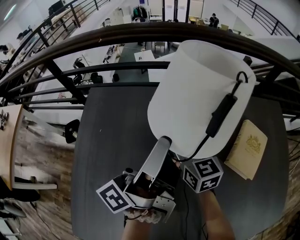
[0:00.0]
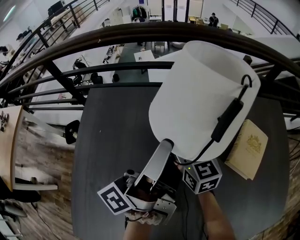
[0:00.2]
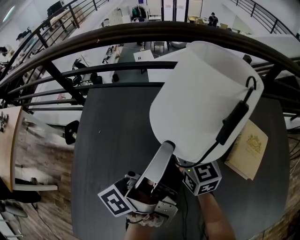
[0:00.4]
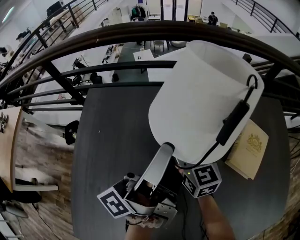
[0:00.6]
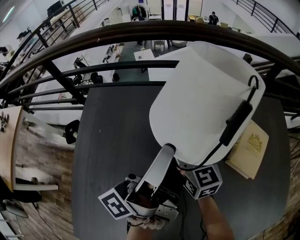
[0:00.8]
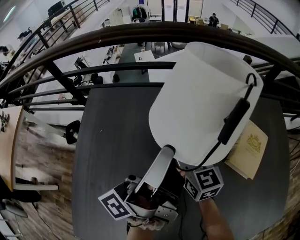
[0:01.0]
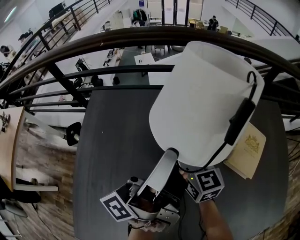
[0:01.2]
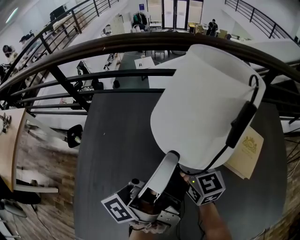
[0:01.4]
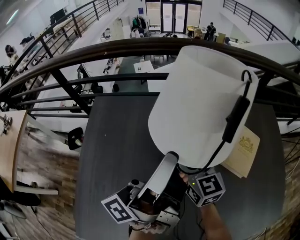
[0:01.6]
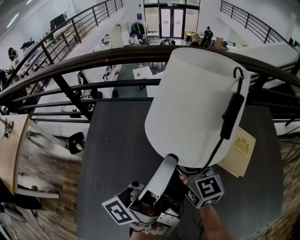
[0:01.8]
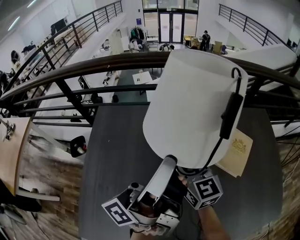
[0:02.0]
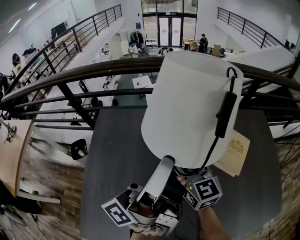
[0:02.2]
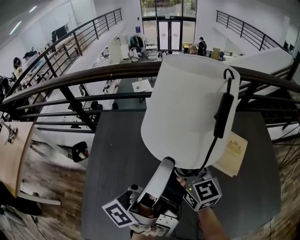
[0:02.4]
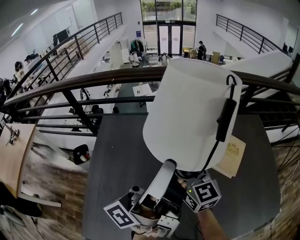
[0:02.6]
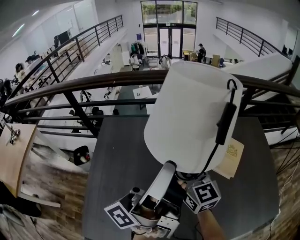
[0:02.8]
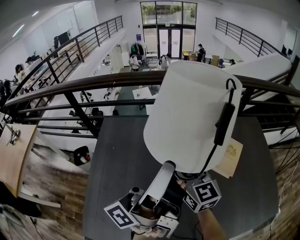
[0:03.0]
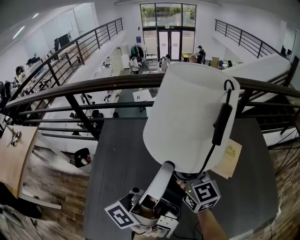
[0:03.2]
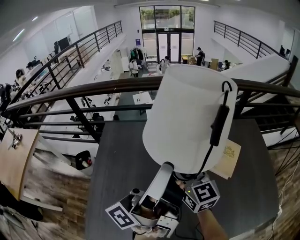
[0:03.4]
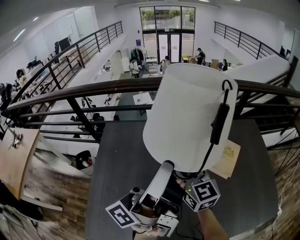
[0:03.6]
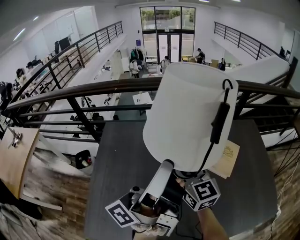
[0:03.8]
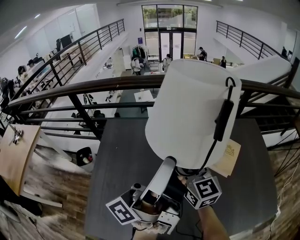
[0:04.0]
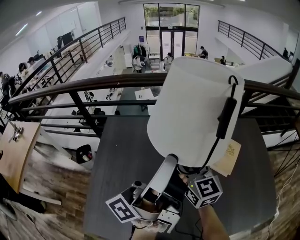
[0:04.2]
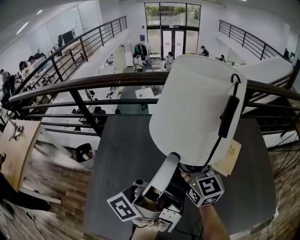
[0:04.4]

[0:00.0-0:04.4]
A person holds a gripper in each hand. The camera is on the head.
0:00.0 to 0:01.4: The left gripper changes place by some 5 cm. The right gripper shifts by approximately 5 cm.
0:01.4 to 0:03.0: The grippers both shift upward and backward by some 15 cm.
0:03.0 to 0:04.4: There are only small adjustments of the grippers.

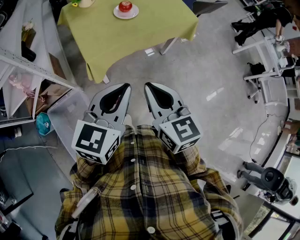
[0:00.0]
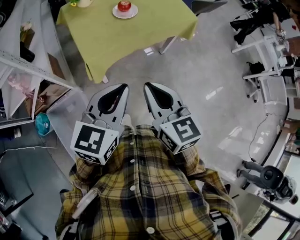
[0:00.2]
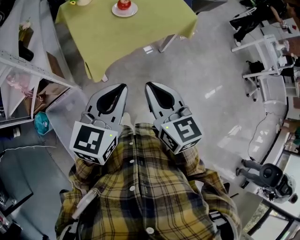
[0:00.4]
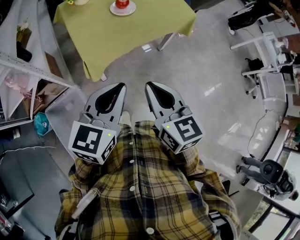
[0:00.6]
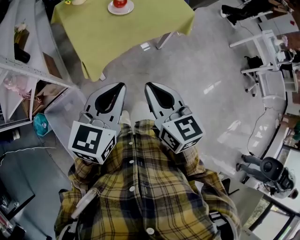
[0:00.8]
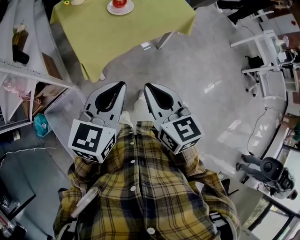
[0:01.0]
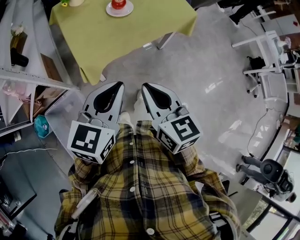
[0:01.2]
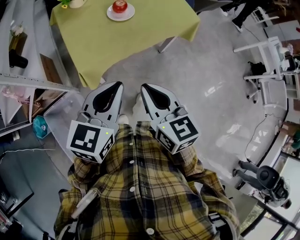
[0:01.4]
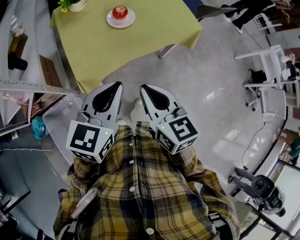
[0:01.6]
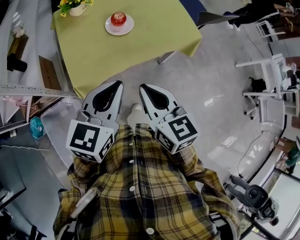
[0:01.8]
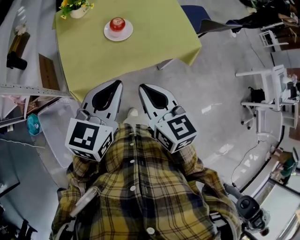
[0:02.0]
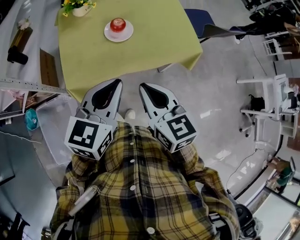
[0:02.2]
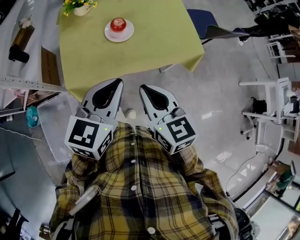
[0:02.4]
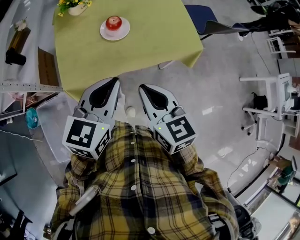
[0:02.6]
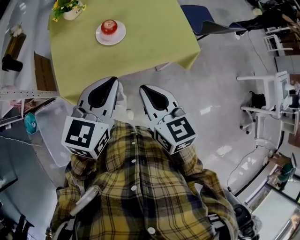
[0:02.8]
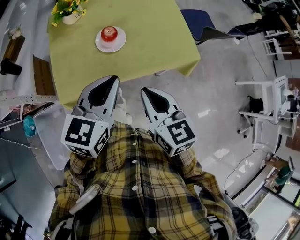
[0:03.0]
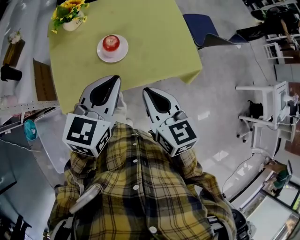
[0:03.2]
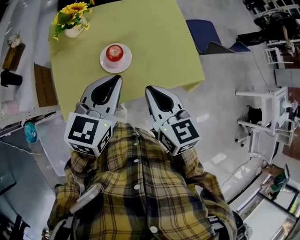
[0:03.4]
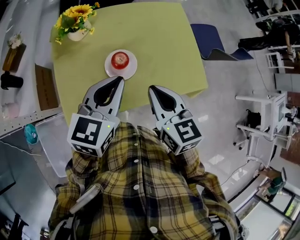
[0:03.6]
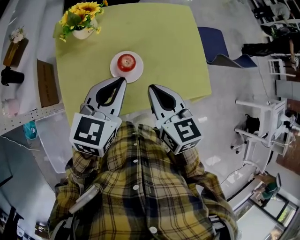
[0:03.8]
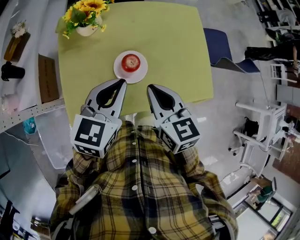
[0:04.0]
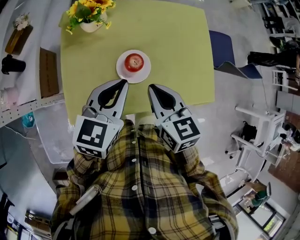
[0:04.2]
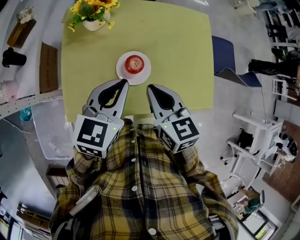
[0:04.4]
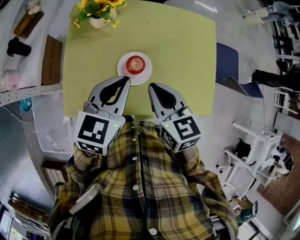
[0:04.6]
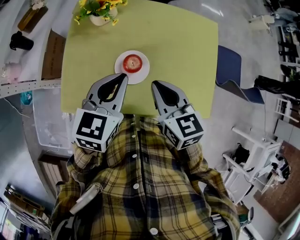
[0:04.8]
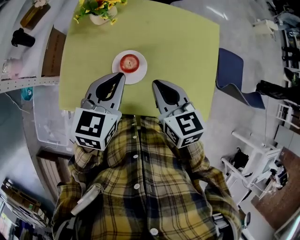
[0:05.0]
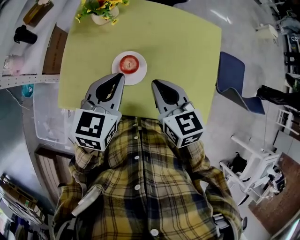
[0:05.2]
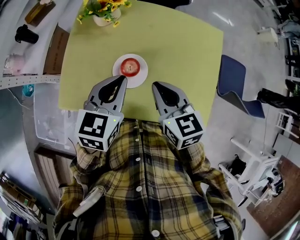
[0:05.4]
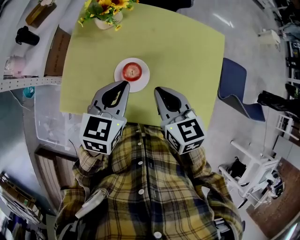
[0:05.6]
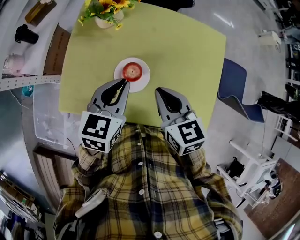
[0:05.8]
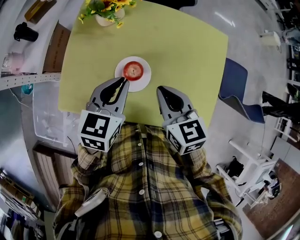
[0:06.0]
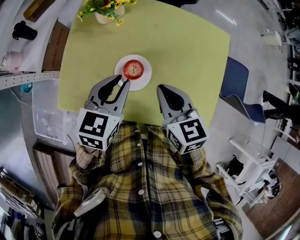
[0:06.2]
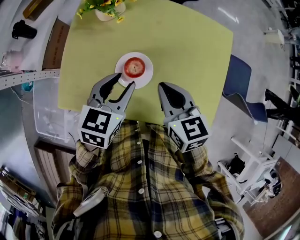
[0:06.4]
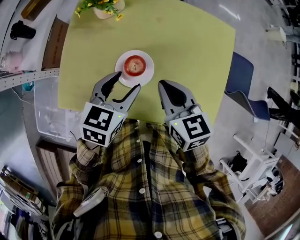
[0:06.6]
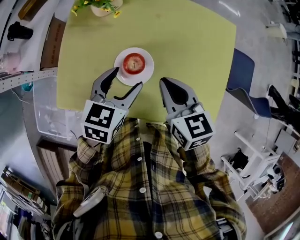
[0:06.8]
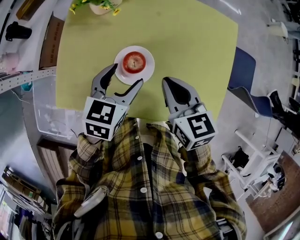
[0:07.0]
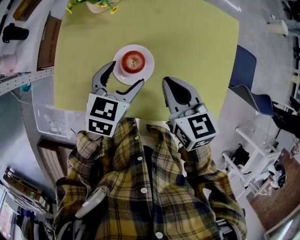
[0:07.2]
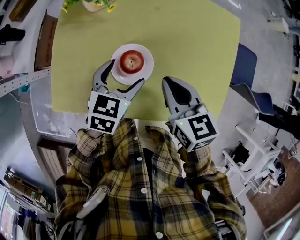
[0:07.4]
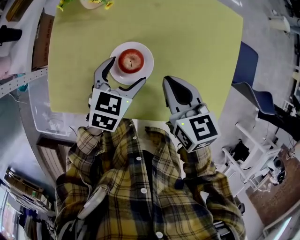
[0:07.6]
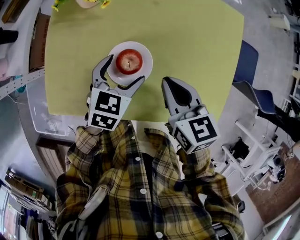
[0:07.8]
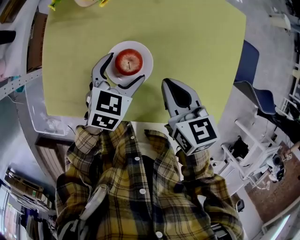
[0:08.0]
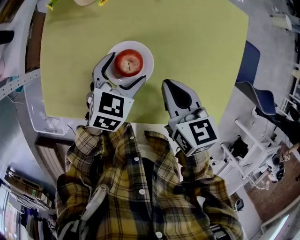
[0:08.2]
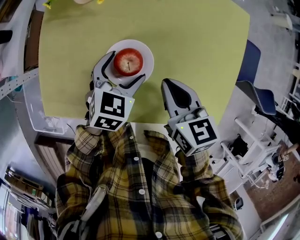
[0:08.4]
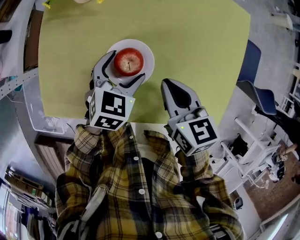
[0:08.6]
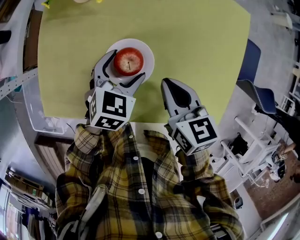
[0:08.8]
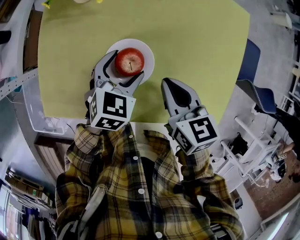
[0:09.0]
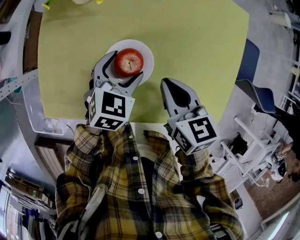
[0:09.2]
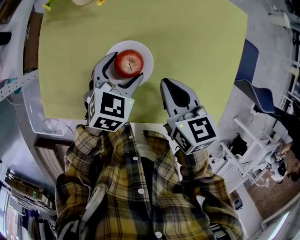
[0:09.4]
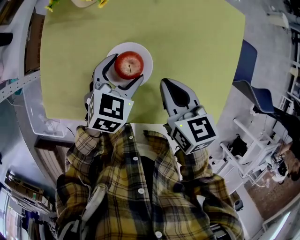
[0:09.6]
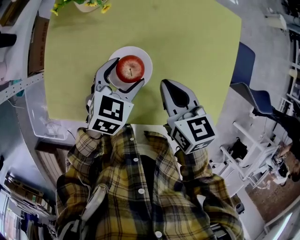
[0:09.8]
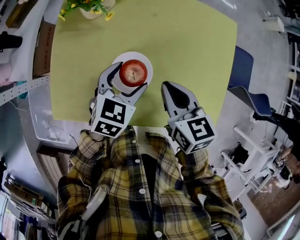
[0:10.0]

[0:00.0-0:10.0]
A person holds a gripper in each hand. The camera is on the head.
0:00.0 to 0:01.4: Both grippers move forward, about 10 cm.
0:01.4 to 0:02.8: Both grippers move forward and to the right, roughly 20 cm.
0:02.8 to 0:04.2: Both grippers travel together forward, approximately 25 cm.
0:04.2 to 0:05.8: The left gripper changes place by about 5 cm, and turns by about 20 degrees, while the right gripper heads to the right, covering roughly 5 cm.
0:05.8 to 0:07.2: The right gripper travels downward by approximately 5 cm, while the left gripper shifts some 10 cm downward, and opens up.
0:07.2 to 0:08.6: The grippers both shift downward by some 5 cm.
0:08.6 to 0:10.0: The left gripper heads upward, covering roughly 5 cm.

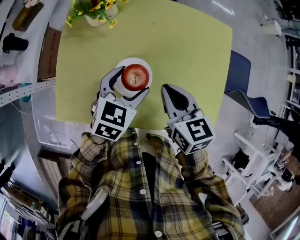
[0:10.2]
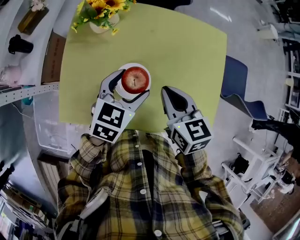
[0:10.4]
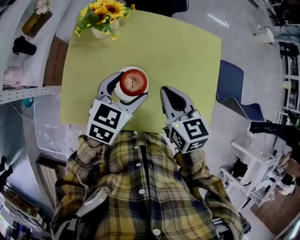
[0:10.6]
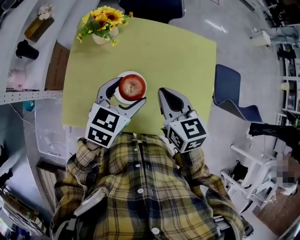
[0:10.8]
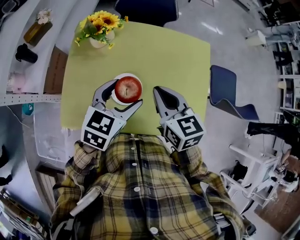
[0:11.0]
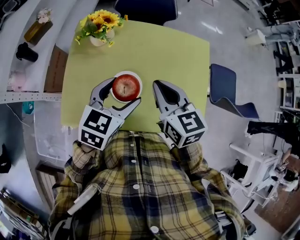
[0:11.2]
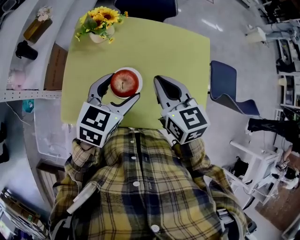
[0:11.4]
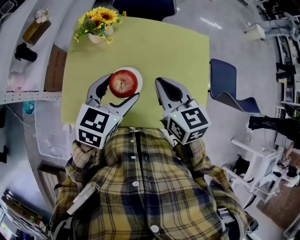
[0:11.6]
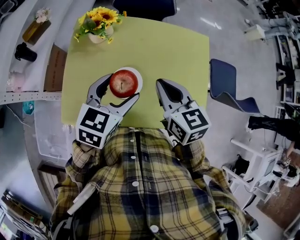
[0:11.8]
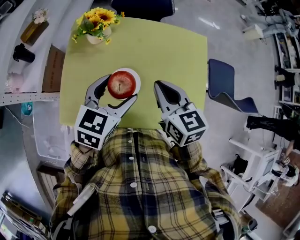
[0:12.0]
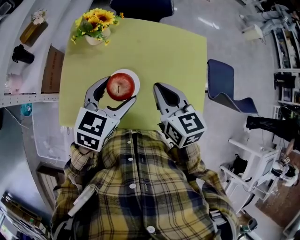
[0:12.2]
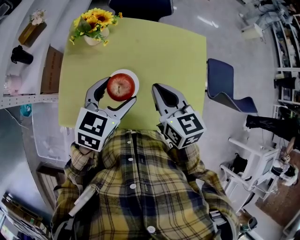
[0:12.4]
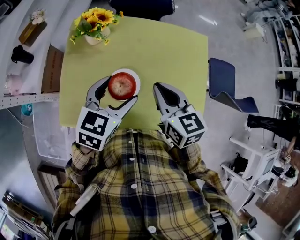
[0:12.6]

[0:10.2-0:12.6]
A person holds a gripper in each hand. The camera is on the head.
0:10.2 to 0:11.4: Both grippers move upward, roughly 10 cm.
0:11.4 to 0:12.6: The grippers make only small movements.

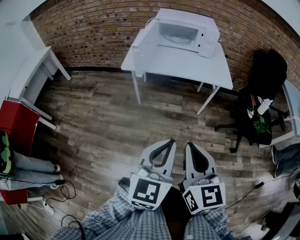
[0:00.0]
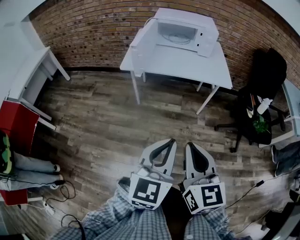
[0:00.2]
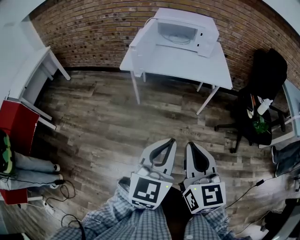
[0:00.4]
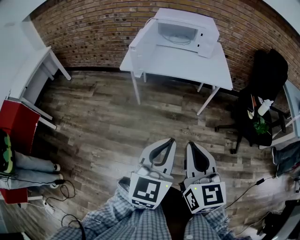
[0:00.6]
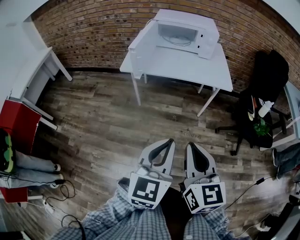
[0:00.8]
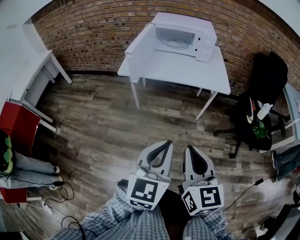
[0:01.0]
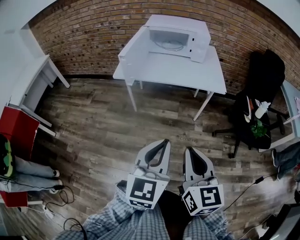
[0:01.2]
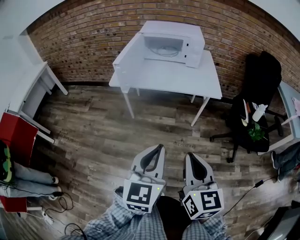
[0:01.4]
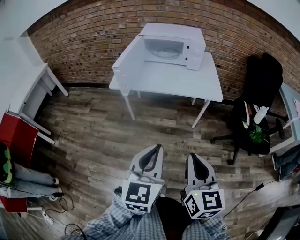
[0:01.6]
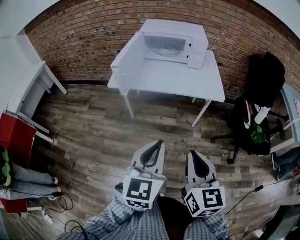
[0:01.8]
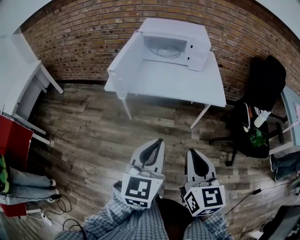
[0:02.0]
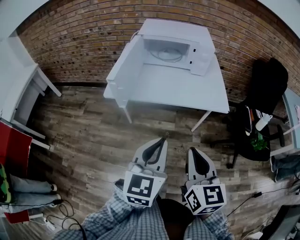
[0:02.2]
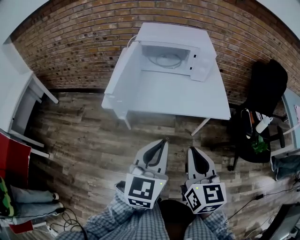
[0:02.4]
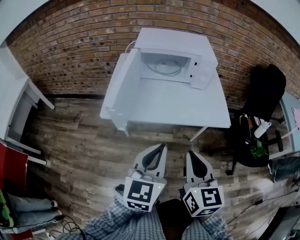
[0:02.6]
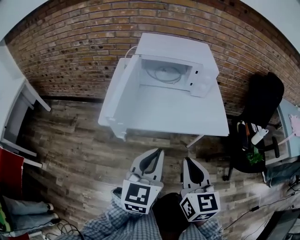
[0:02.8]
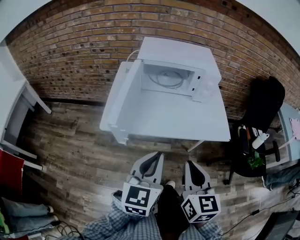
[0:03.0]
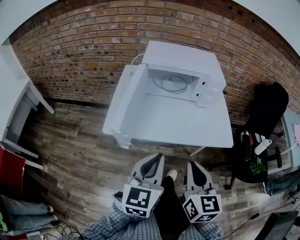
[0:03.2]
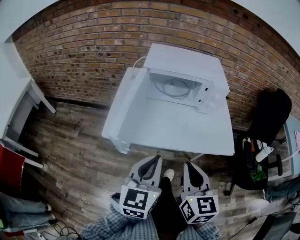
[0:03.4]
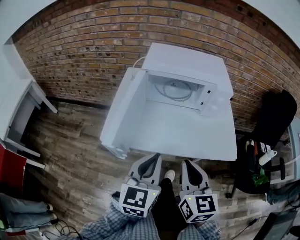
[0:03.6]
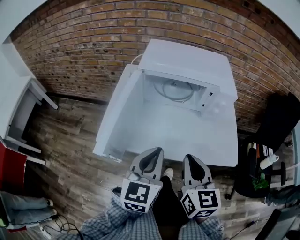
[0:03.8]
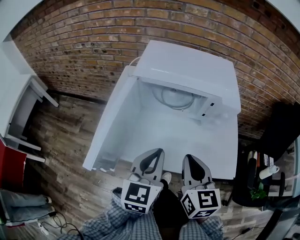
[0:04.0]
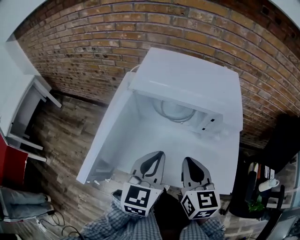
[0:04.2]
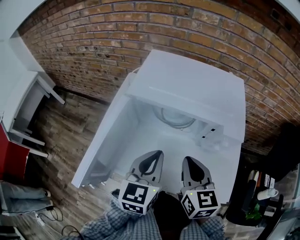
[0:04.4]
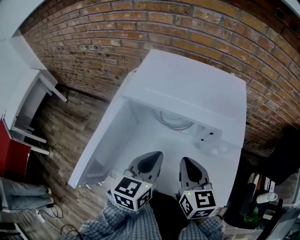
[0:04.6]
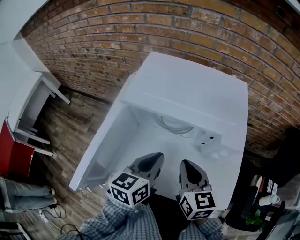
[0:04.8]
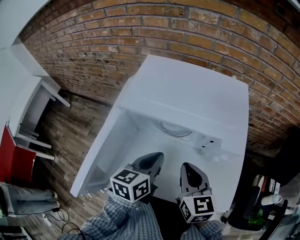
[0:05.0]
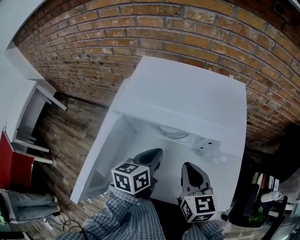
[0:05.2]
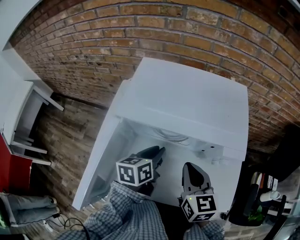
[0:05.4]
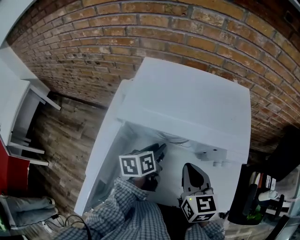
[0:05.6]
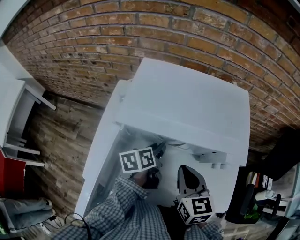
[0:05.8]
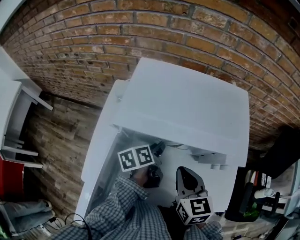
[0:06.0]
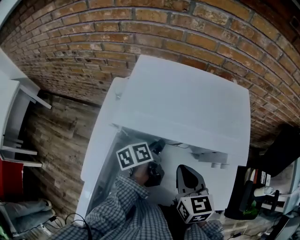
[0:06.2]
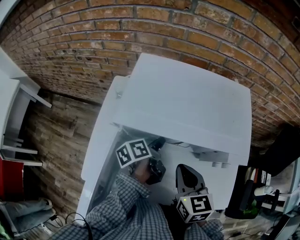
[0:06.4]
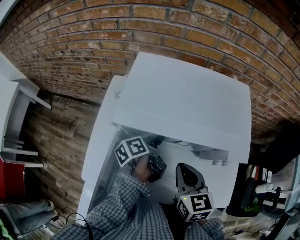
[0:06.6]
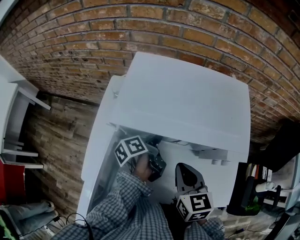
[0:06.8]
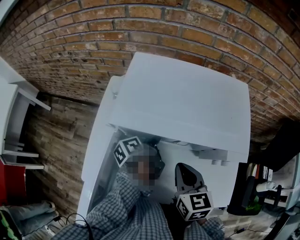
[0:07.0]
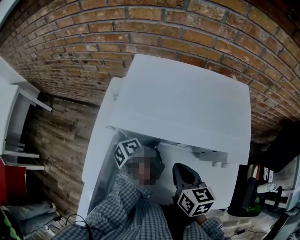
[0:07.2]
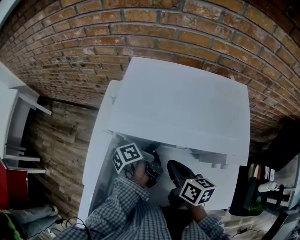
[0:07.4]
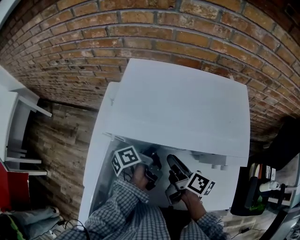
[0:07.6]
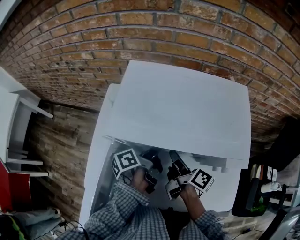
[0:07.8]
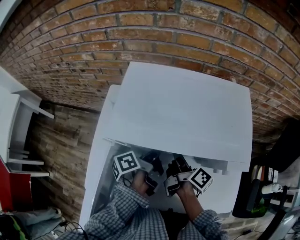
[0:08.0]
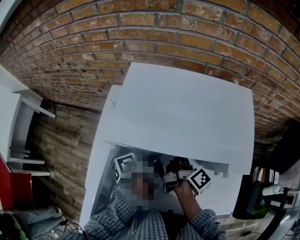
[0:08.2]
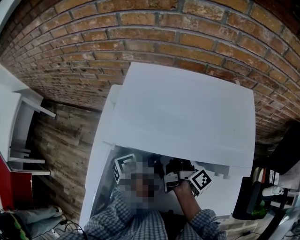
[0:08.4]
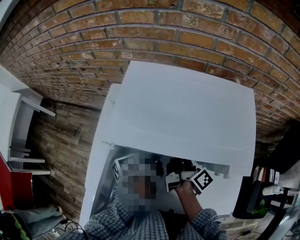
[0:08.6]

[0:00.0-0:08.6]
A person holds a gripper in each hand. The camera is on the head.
0:00.0 to 0:01.4: The left gripper travels to the right by some 5 cm. Meanwhile the right gripper is displaced to the right by about 10 cm.
0:01.4 to 0:02.8: Both grippers move forward, about 30 cm.
0:02.8 to 0:04.4: Both grippers travel together forward, some 35 cm.
0:04.4 to 0:05.8: The left gripper moves forward and downward, approximately 20 cm, rolls counterclockwise, seen from behind, by about 40 degrees, and opens; the right gripper goes some 5 cm forward.
0:05.8 to 0:07.2: The left gripper changes its angle by roughly 30 degrees, and closes up.
0:07.2 to 0:08.6: The right gripper goes approximately 10 cm forward, twists approximately 70 degrees clockwise, seen from behind, and opens, then closes again.
